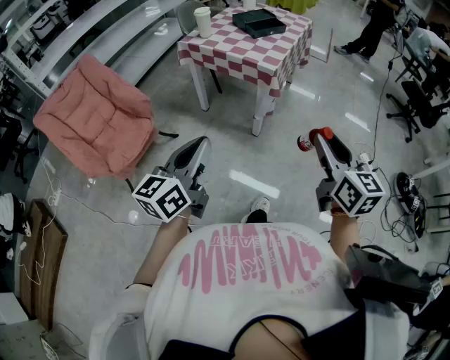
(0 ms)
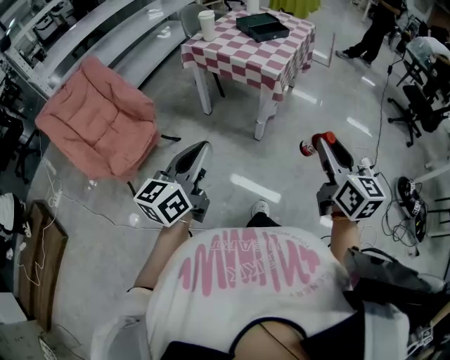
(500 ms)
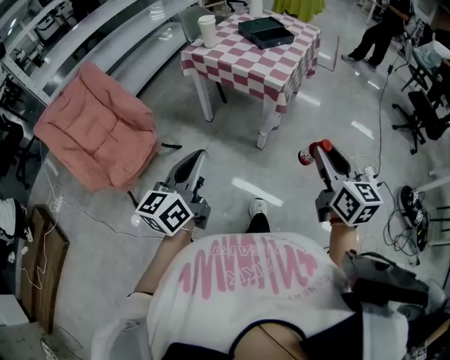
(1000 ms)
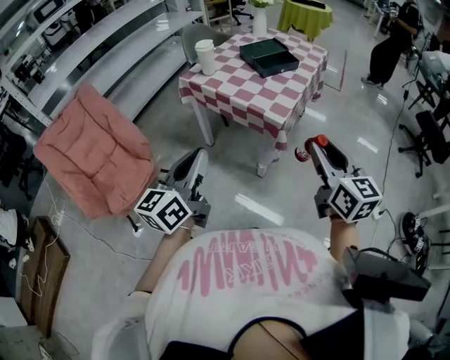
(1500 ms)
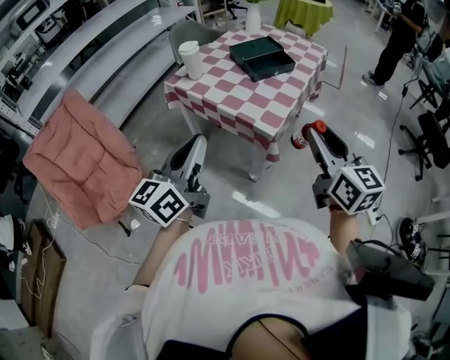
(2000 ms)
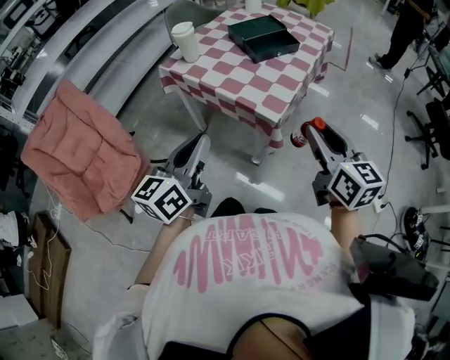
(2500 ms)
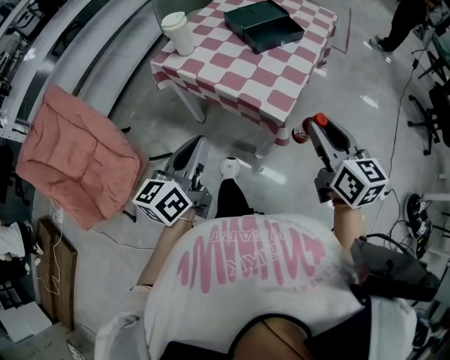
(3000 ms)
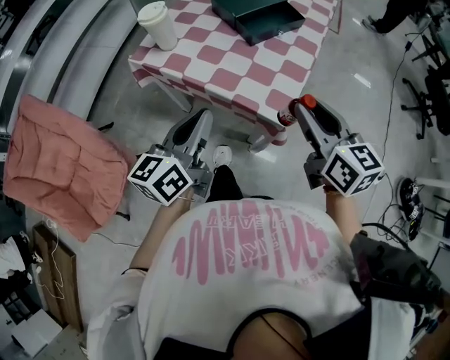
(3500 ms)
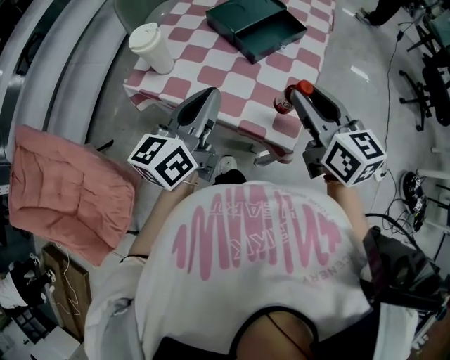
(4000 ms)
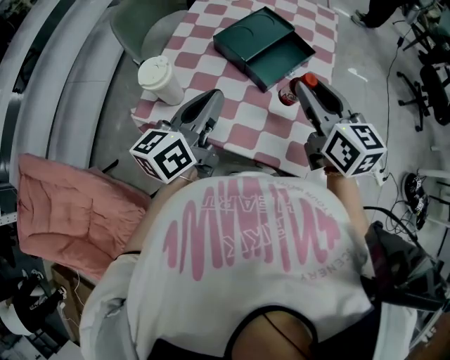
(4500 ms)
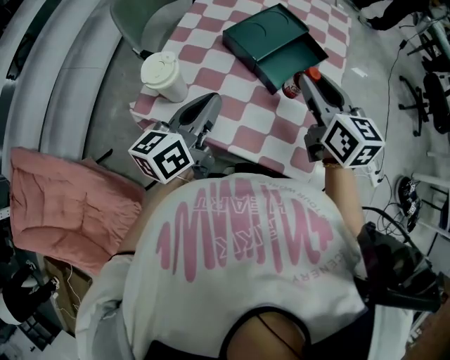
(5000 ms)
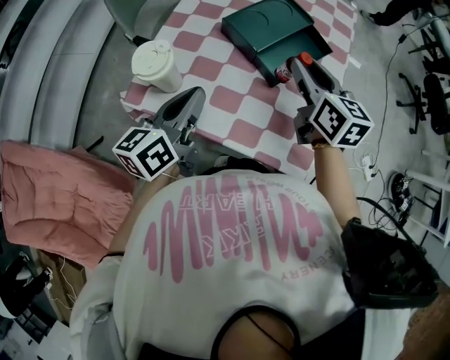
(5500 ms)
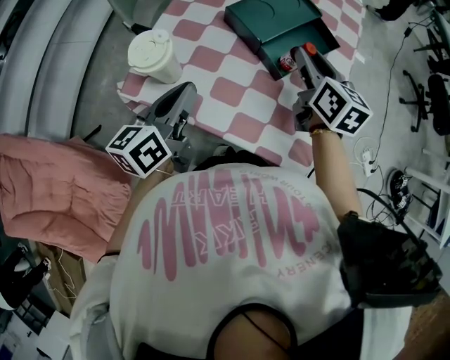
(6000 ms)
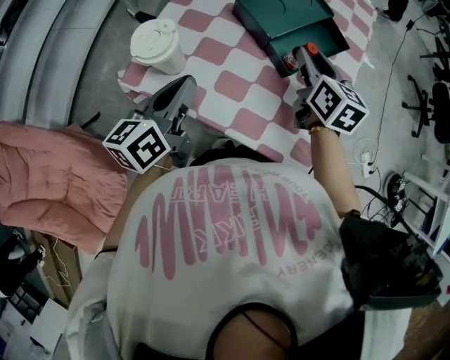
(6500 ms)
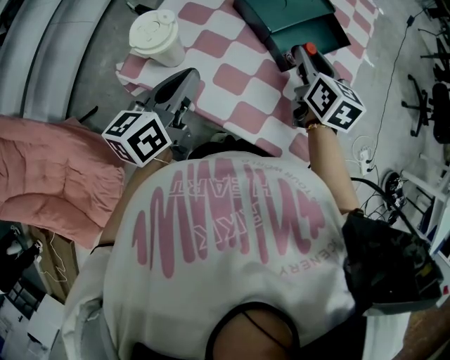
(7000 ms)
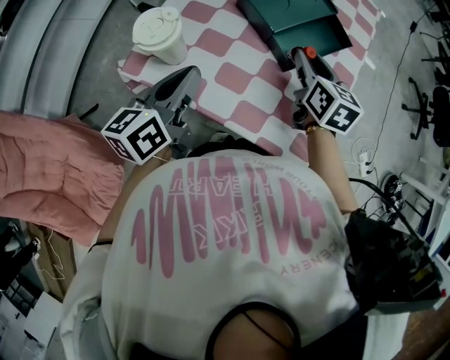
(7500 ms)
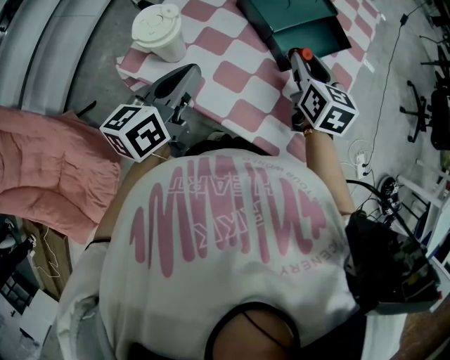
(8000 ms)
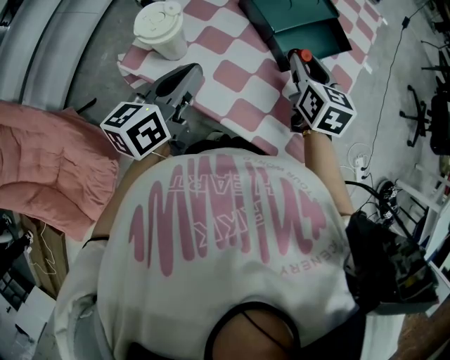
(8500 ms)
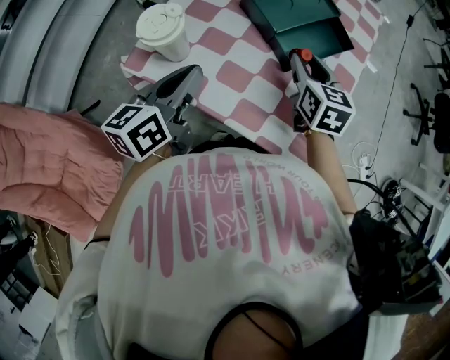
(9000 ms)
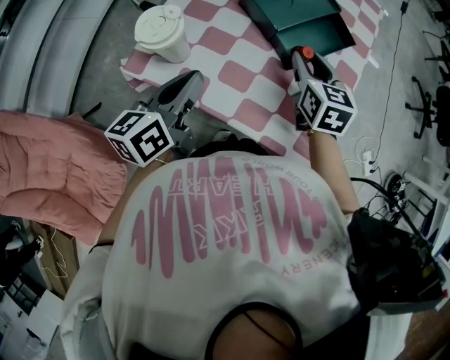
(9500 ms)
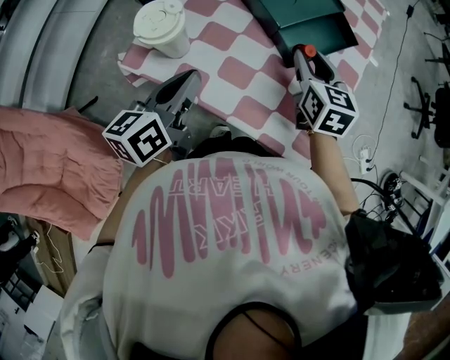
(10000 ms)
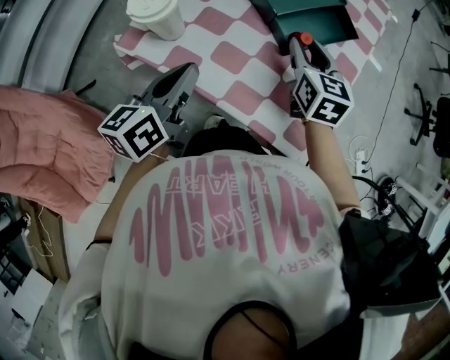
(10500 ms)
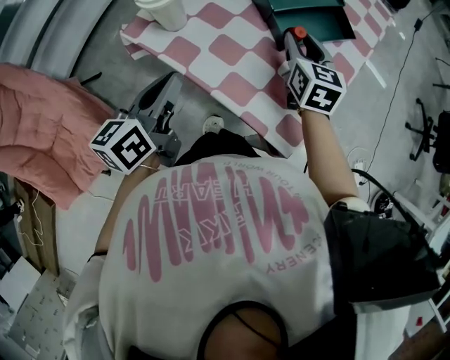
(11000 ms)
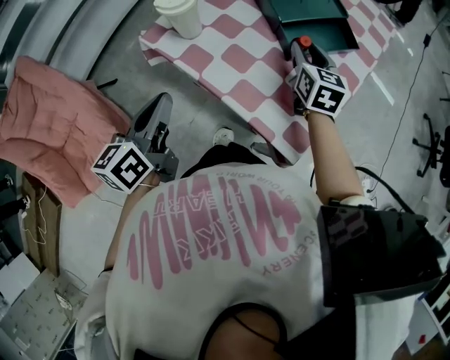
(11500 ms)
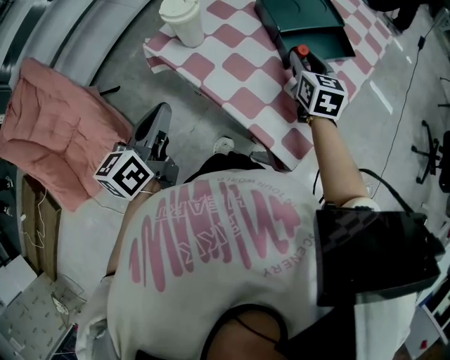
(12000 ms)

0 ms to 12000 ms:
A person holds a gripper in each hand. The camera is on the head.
0 ms to 2000 ms: The grippers both shift forward by about 35 cm.
2000 ms to 4000 ms: Both grippers move forward, about 30 cm.
4000 ms to 6000 ms: The right gripper shifts about 20 cm forward; the left gripper shifts roughly 20 cm to the left, forward and downward.
6000 ms to 8000 ms: The right gripper travels downward by about 5 cm.
8000 ms to 10000 ms: The grippers move only a little.
10000 ms to 12000 ms: The left gripper is displaced backward by about 15 cm, and changes its angle by about 20 degrees.

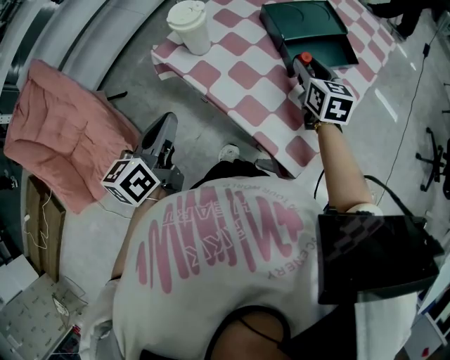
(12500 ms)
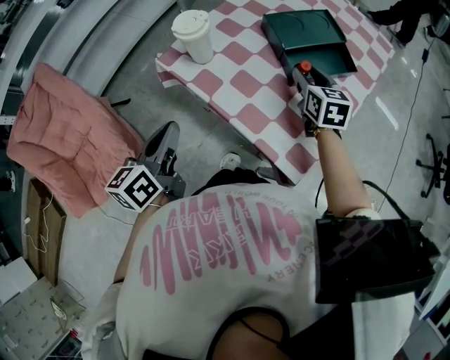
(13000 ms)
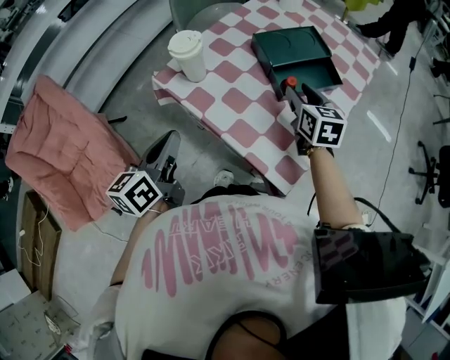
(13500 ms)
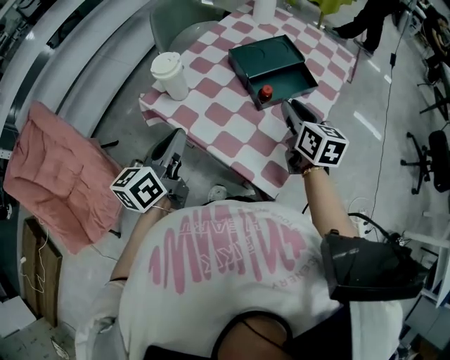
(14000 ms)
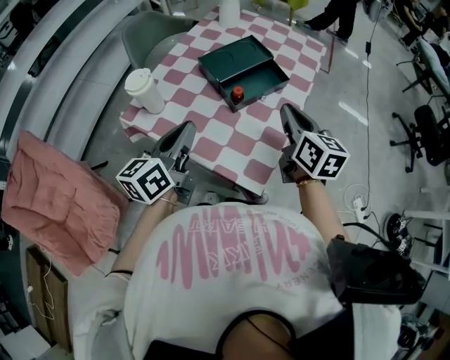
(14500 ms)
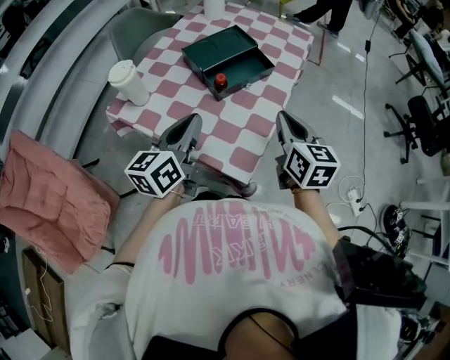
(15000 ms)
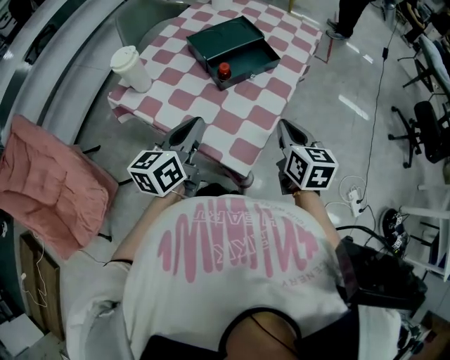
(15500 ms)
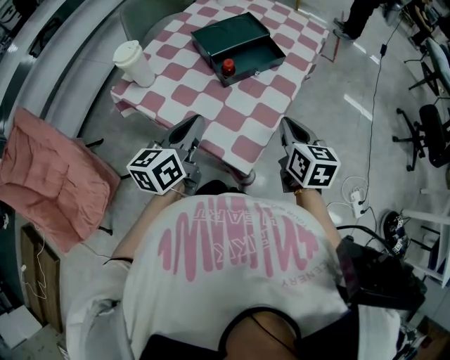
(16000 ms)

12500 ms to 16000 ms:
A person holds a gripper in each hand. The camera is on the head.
12500 ms to 14500 ms: The left gripper moves to the right and upward, roughly 15 cm, and rotates approximately 20 degrees. The right gripper is displaced upward, backward and to the right by about 20 cm, changes its angle by approximately 20 degrees, and closes its fingers.
14500 ms to 16000 ms: The right gripper travels downward, backward and to the right by some 10 cm. The left gripper shifts roughly 10 cm to the right and downward.

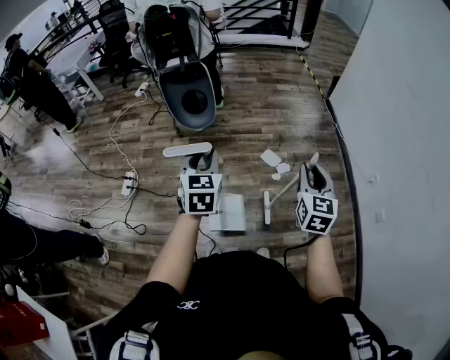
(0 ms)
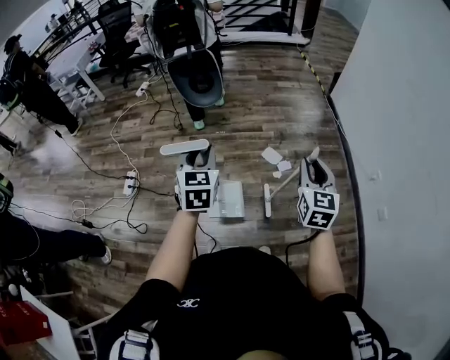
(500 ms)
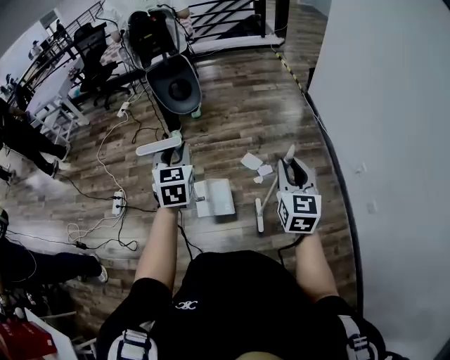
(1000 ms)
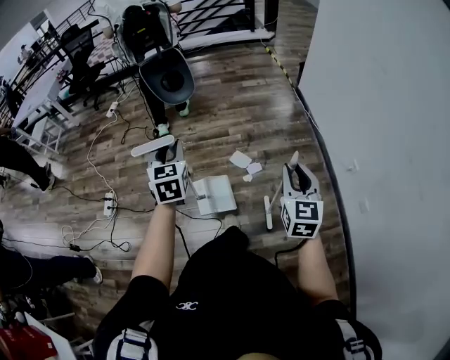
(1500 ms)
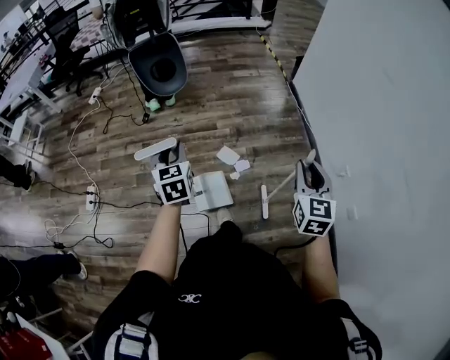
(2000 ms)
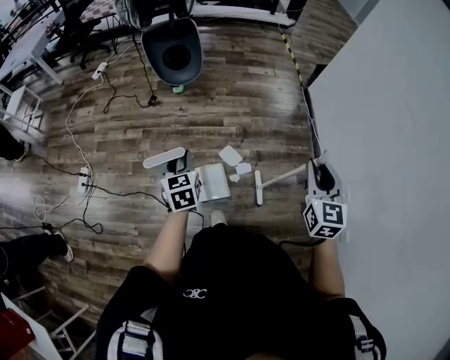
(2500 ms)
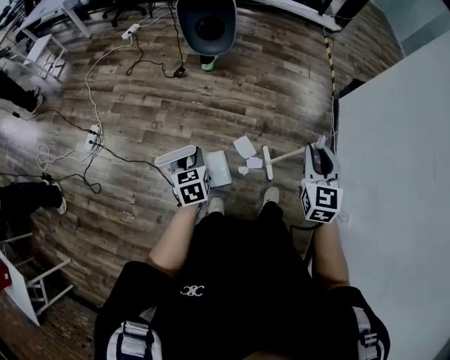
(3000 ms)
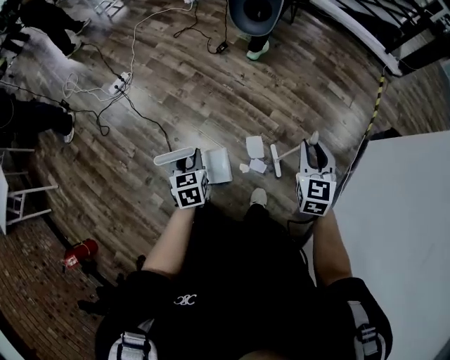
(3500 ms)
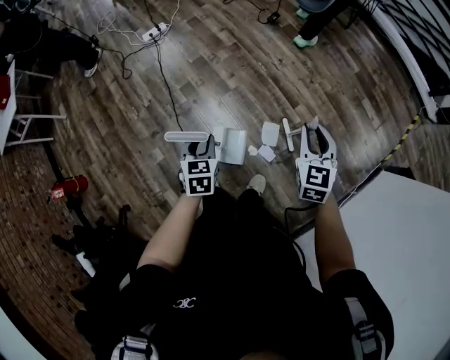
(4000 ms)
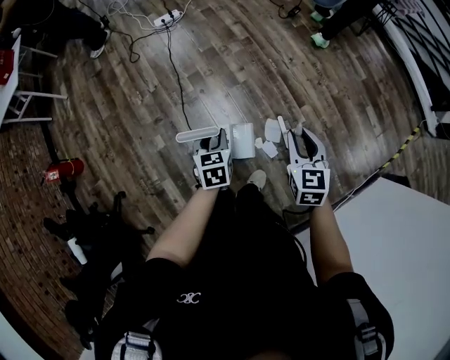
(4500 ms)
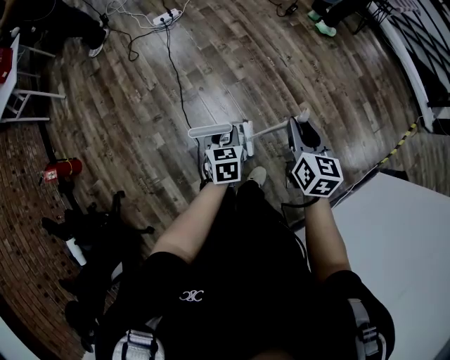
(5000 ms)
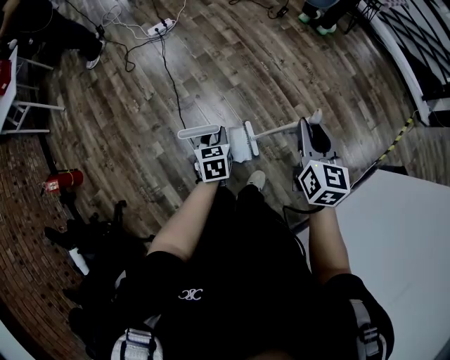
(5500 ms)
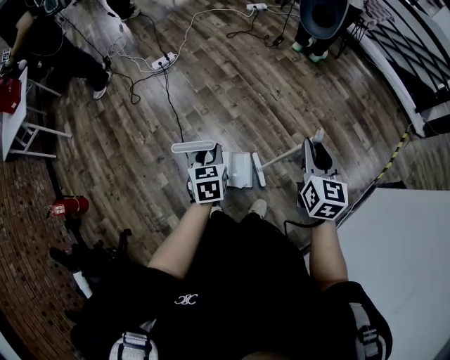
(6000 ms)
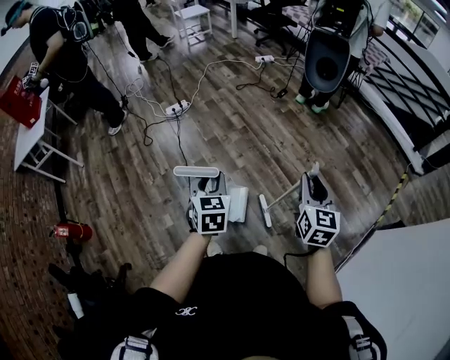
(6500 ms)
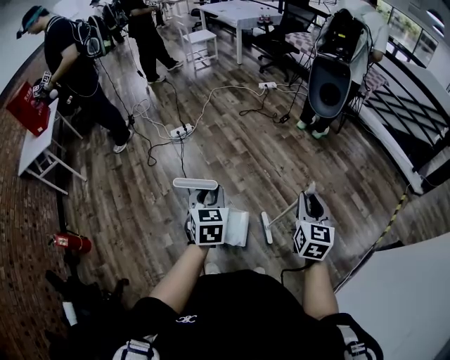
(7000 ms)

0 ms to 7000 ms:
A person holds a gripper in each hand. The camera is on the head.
0 ms to 2000 ms: The right gripper is displaced to the right and forward by approximately 25 cm. Meanwhile the left gripper goes about 25 cm forward and to the right.
2000 ms to 3500 ms: The right gripper shifts by about 35 cm, and swivels some 50 degrees. The left gripper goes approximately 15 cm downward, and turns by approximately 50 degrees.
3500 ms to 5000 ms: The right gripper changes place by some 15 cm, and changes its angle by some 30 degrees, while the left gripper ends up about 10 cm from where it was.
5000 ms to 7000 ms: The right gripper moves upward and to the right, roughly 15 cm, and turns by approximately 20 degrees. Meanwhile the left gripper moves upward, roughly 25 cm, and rotates about 20 degrees.

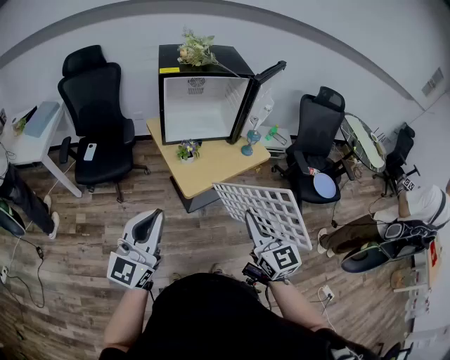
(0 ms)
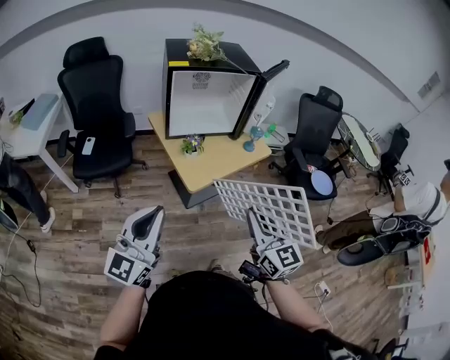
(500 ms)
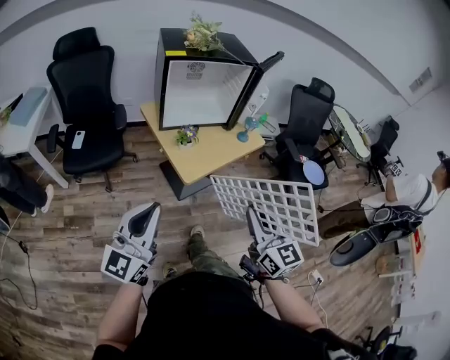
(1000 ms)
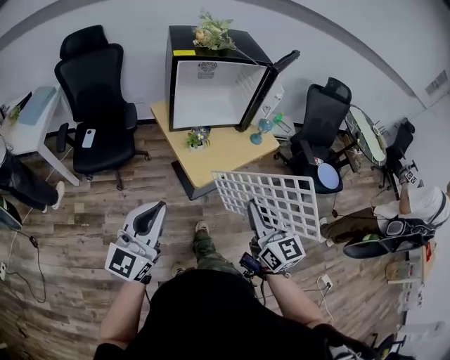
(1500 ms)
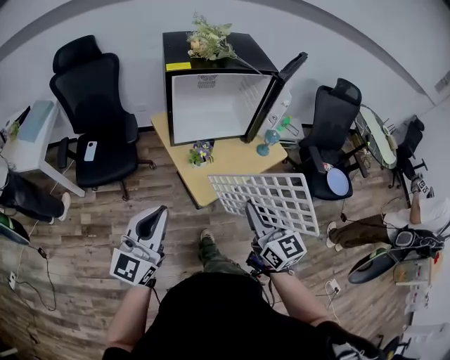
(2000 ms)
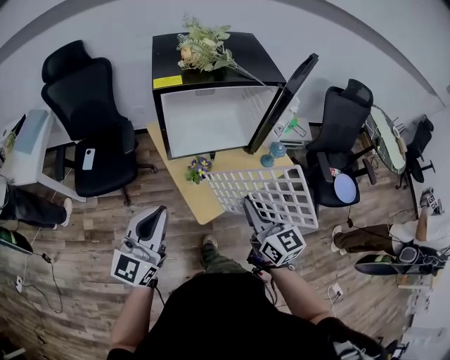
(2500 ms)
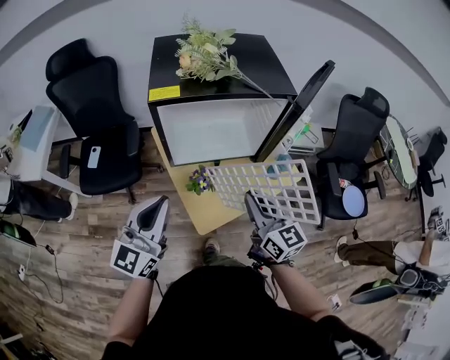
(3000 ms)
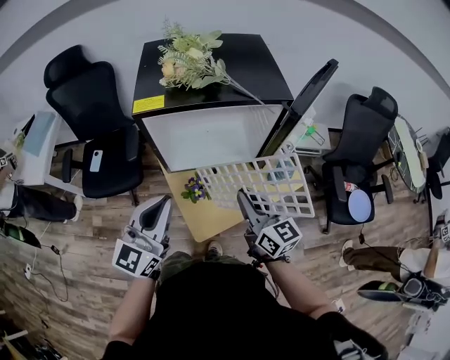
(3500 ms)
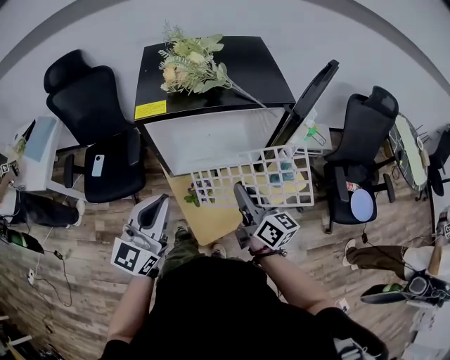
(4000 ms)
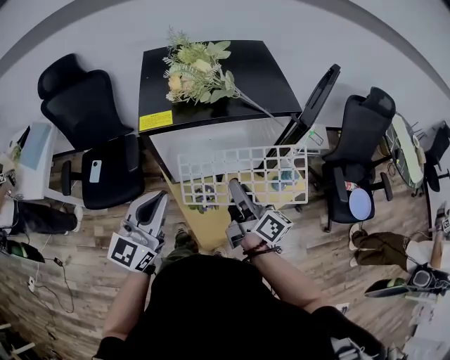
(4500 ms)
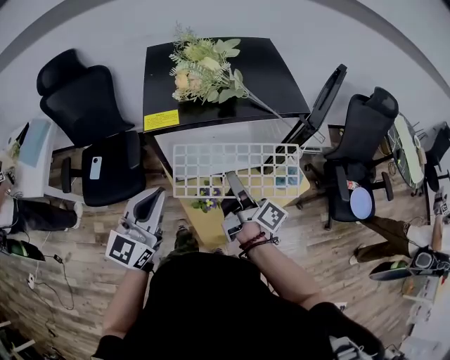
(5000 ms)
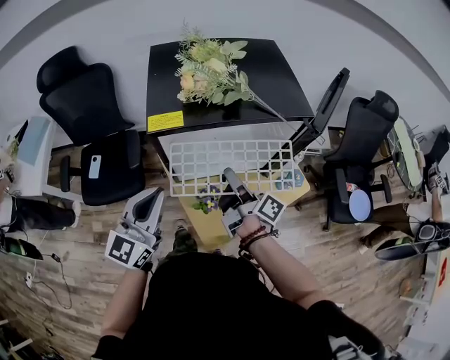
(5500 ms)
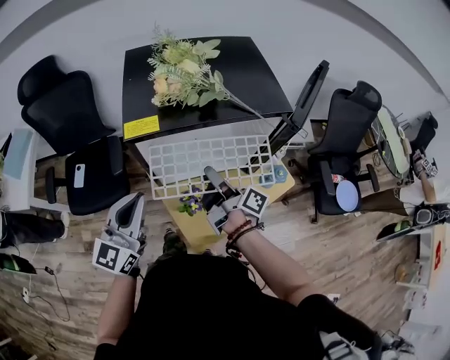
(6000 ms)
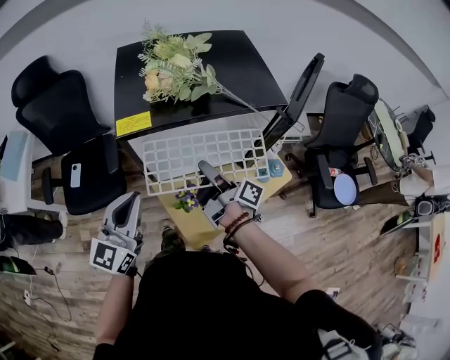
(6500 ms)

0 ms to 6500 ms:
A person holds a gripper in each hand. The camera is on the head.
0 ms to 2000 ms: Both grippers travel together forward and to the left, roughly 15 cm.
2000 ms to 4500 ms: Both grippers move forward, approximately 30 cm. The right gripper rolls clockwise, seen from behind, by roughly 50 degrees.
4500 ms to 6500 ms: The right gripper moves forward, some 5 cm, and changes its angle by roughly 30 degrees.
